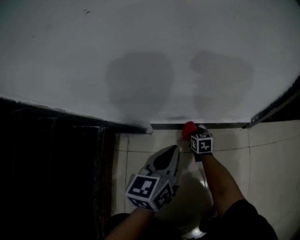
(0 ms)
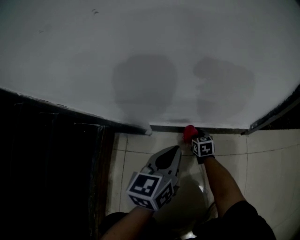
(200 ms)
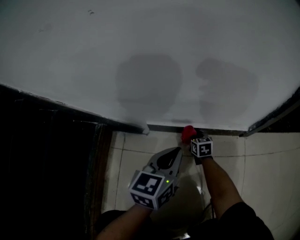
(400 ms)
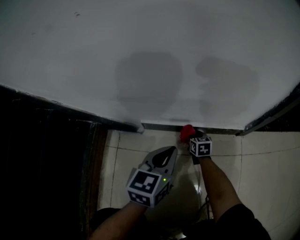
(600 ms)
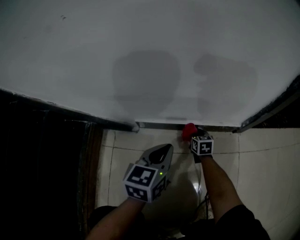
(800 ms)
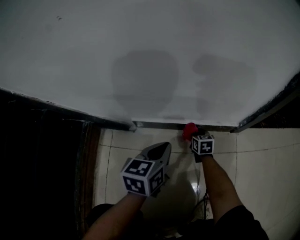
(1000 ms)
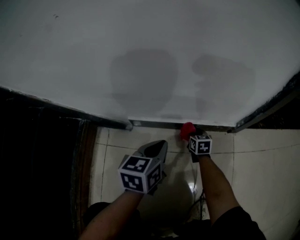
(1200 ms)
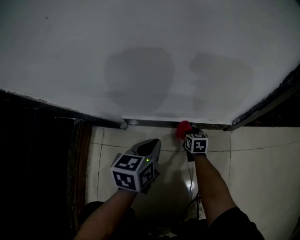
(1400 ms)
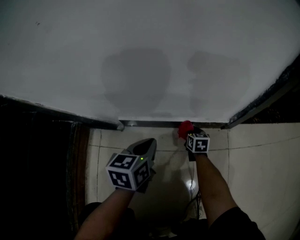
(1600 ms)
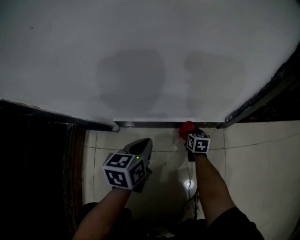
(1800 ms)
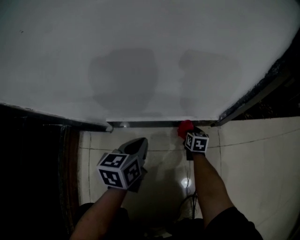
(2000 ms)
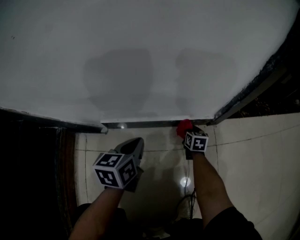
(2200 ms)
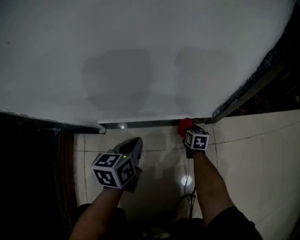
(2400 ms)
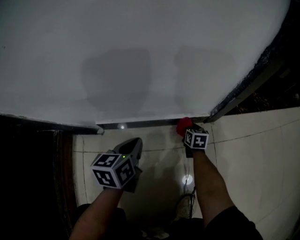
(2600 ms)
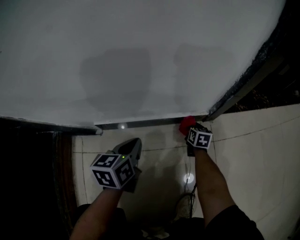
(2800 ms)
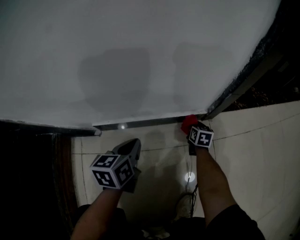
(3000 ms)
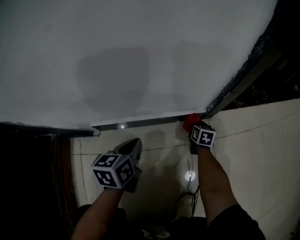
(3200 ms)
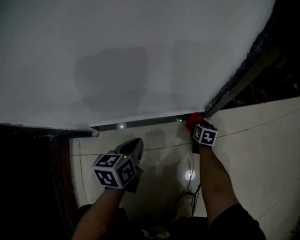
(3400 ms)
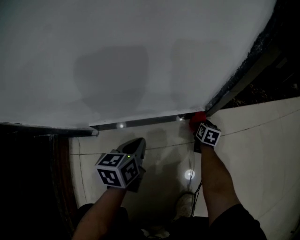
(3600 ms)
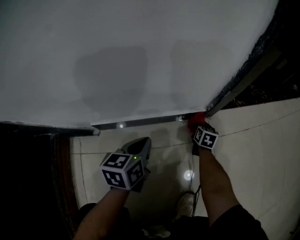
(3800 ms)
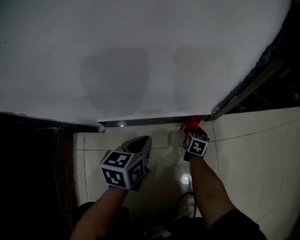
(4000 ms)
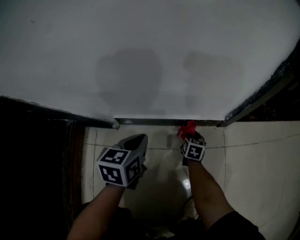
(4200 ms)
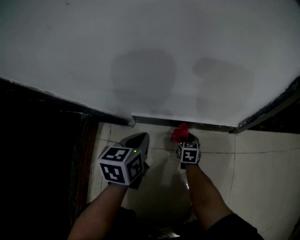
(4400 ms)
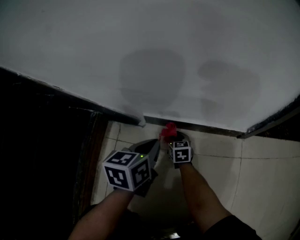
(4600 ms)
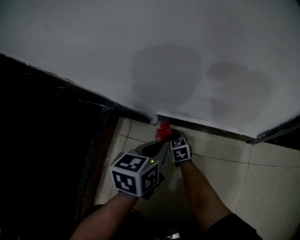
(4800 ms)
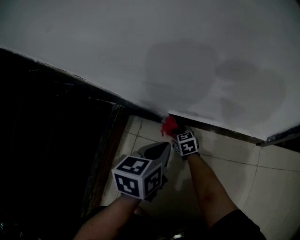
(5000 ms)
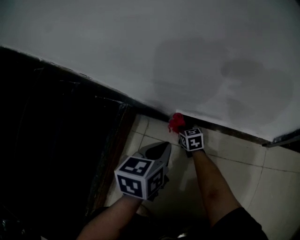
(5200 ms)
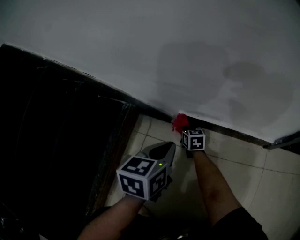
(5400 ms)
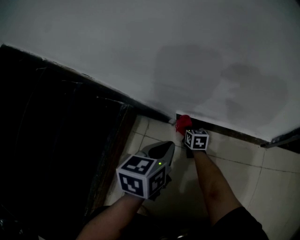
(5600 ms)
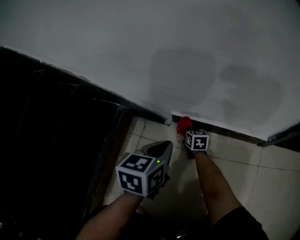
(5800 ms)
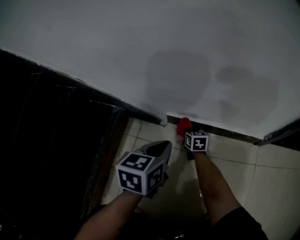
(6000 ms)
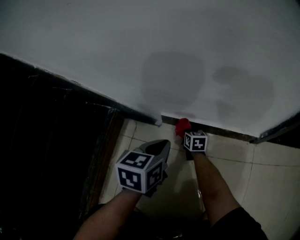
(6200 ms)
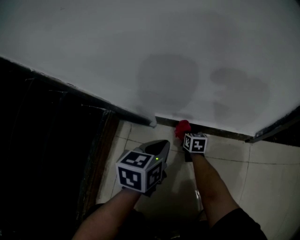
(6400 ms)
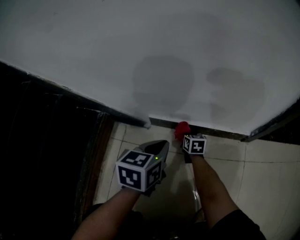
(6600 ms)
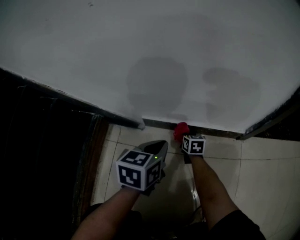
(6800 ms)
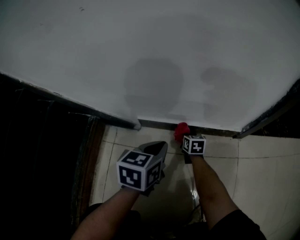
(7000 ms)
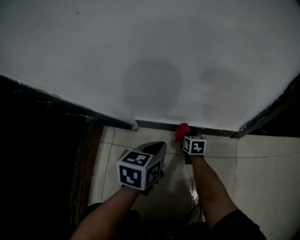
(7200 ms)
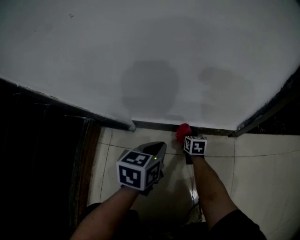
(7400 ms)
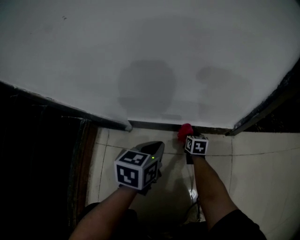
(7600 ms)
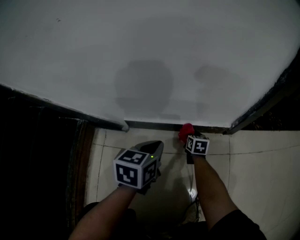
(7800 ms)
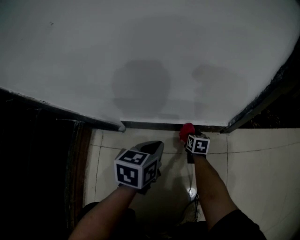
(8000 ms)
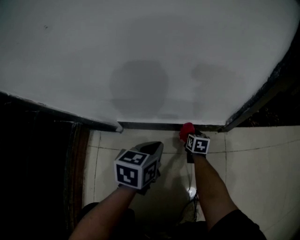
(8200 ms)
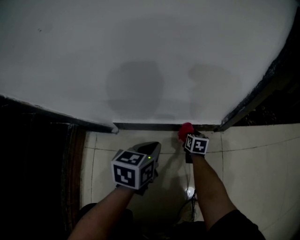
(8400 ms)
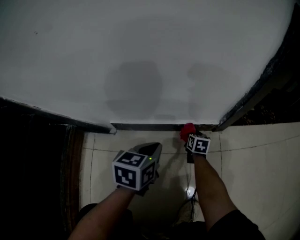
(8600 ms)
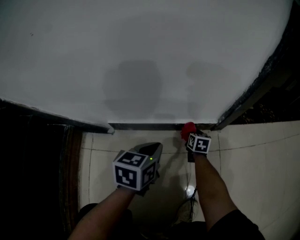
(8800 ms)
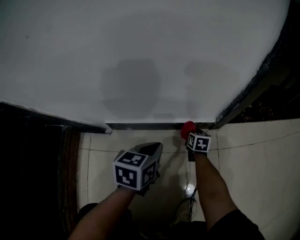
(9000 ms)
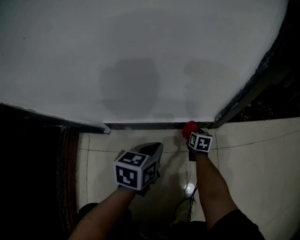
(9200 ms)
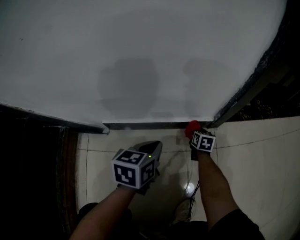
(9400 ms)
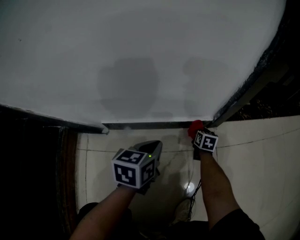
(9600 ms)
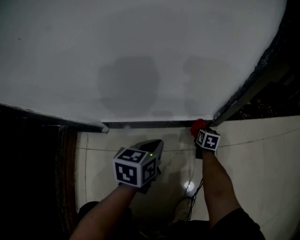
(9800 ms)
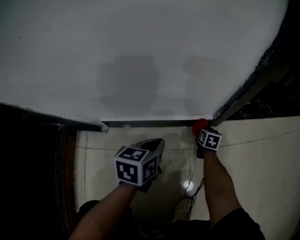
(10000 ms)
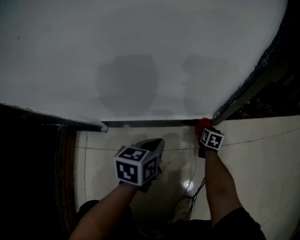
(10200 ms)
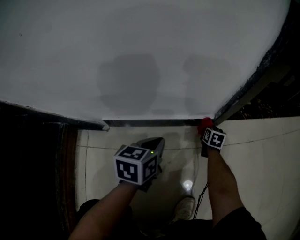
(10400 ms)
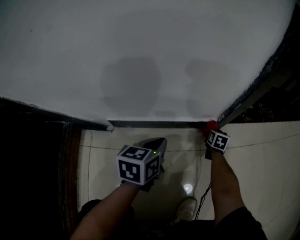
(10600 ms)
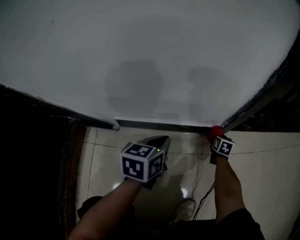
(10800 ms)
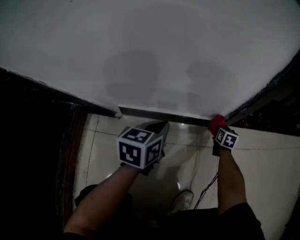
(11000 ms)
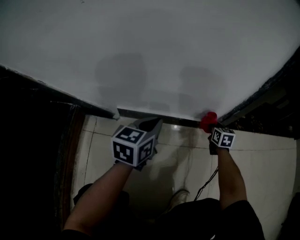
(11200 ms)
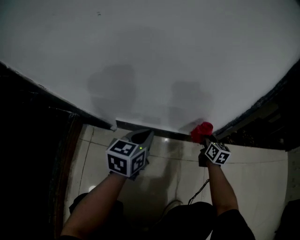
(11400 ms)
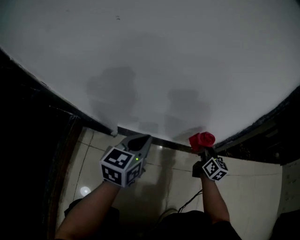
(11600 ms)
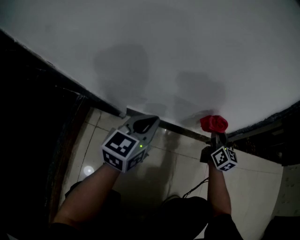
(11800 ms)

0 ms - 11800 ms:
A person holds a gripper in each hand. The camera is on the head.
0 ms - 1400 ms: The left gripper moves to the right and downward, some 10 cm; the right gripper goes about 10 cm to the right.
1400 ms - 3000 ms: The right gripper goes about 20 cm to the right. Meanwhile the left gripper is displaced to the right by some 5 cm.
3000 ms - 4400 ms: The left gripper goes about 15 cm to the left and backward, while the right gripper travels to the left and backward by about 25 cm.
4400 ms - 6000 ms: The left gripper travels to the left by roughly 5 cm, while the right gripper heads to the left and forward, covering some 15 cm.
6000 ms - 7400 ms: The grippers both shift to the right by approximately 15 cm.
7400 ms - 8800 ms: The right gripper travels to the right by about 15 cm. The left gripper travels to the right by approximately 10 cm.
8800 ms - 10400 ms: The right gripper moves to the right, roughly 10 cm.
10400 ms - 11800 ms: The left gripper shifts approximately 20 cm to the left and upward, and turns by approximately 30 degrees; the right gripper moves upward and to the left, roughly 35 cm, and tilts its fingers about 40 degrees upward.

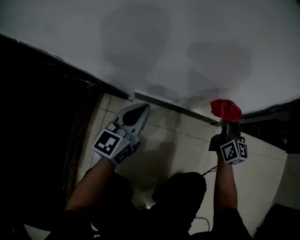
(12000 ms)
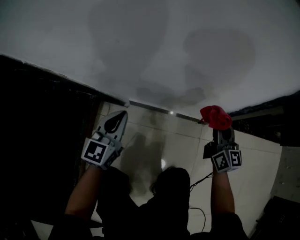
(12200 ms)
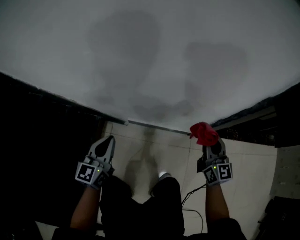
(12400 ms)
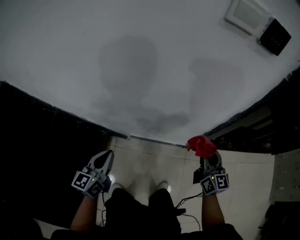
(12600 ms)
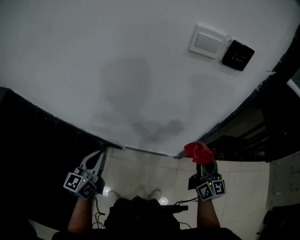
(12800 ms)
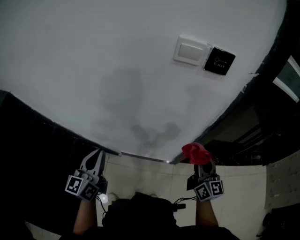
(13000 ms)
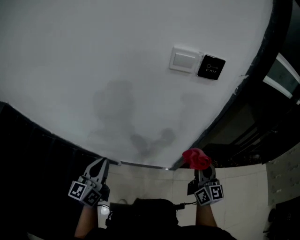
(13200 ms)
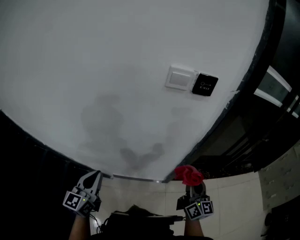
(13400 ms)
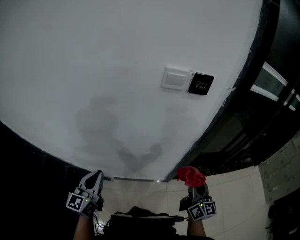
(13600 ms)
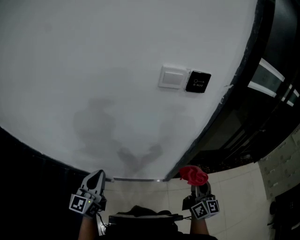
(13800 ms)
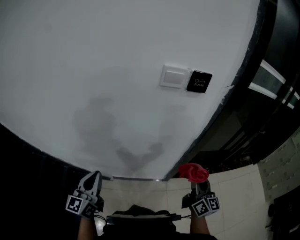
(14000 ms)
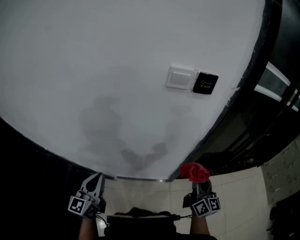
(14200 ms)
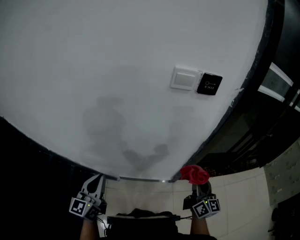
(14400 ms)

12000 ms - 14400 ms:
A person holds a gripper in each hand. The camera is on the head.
12000 ms - 13200 ms: The right gripper goes up and down, about 40 cm each way, reversing 2 times; the left gripper swings up and down, some 40 cm each way, with 2 reversals.
13200 ms - 14400 ms: The grippers stay close to where they were, moving slightly.

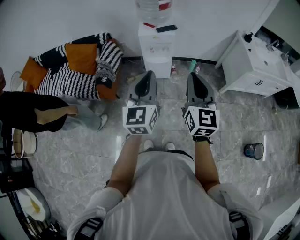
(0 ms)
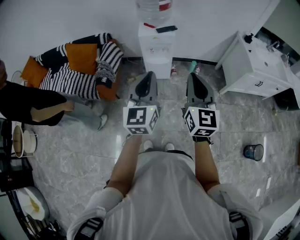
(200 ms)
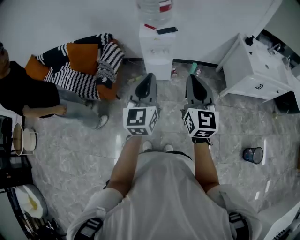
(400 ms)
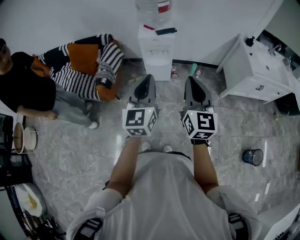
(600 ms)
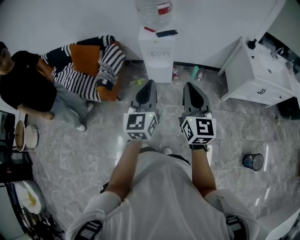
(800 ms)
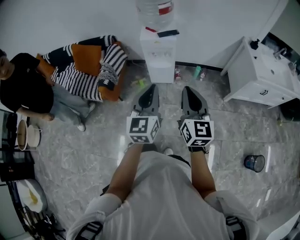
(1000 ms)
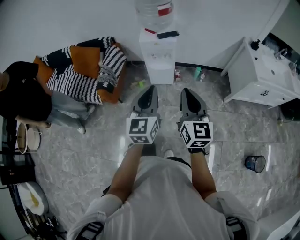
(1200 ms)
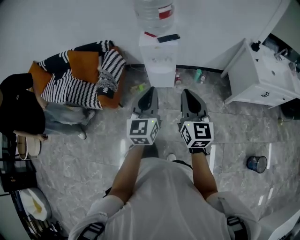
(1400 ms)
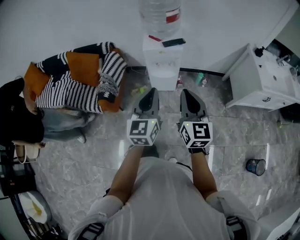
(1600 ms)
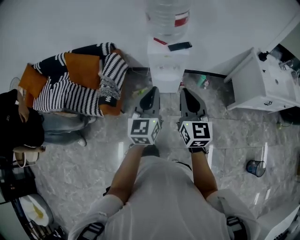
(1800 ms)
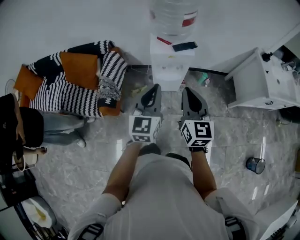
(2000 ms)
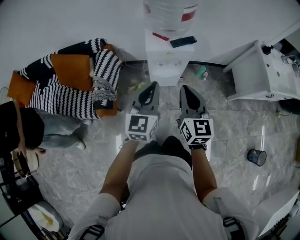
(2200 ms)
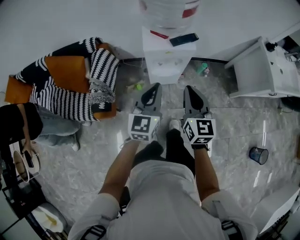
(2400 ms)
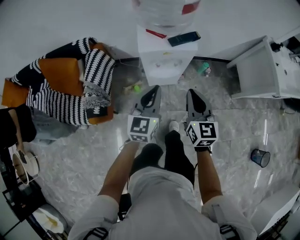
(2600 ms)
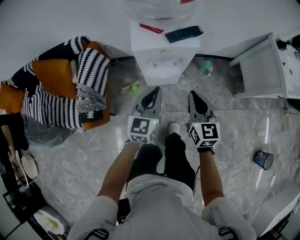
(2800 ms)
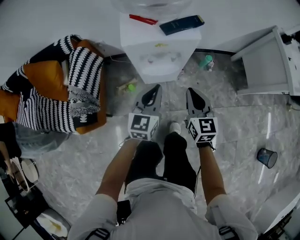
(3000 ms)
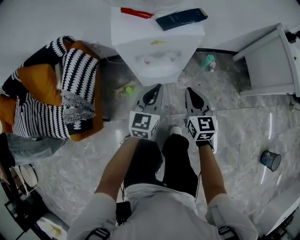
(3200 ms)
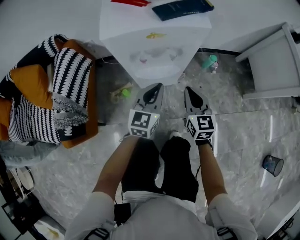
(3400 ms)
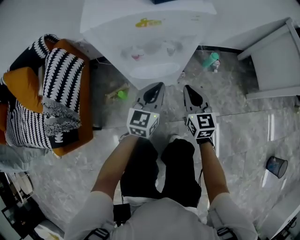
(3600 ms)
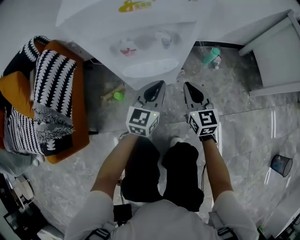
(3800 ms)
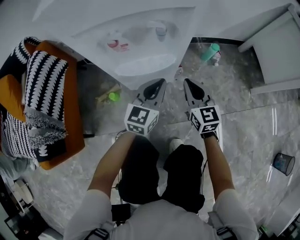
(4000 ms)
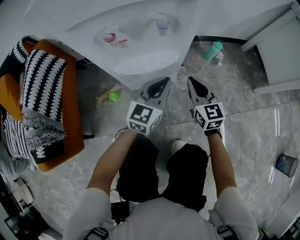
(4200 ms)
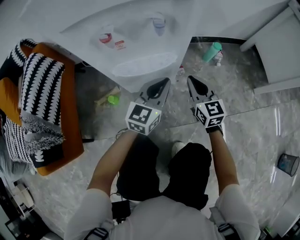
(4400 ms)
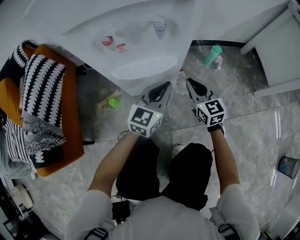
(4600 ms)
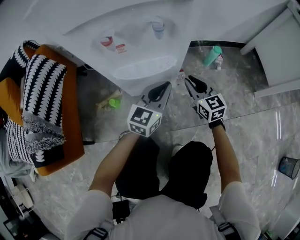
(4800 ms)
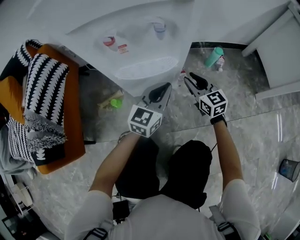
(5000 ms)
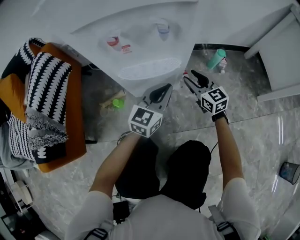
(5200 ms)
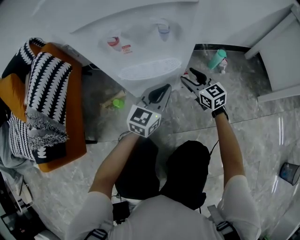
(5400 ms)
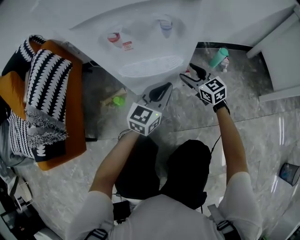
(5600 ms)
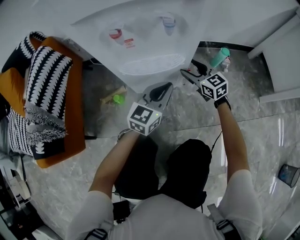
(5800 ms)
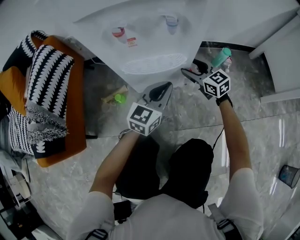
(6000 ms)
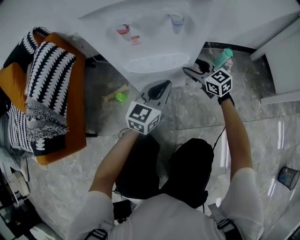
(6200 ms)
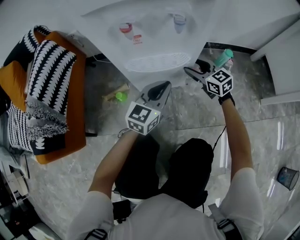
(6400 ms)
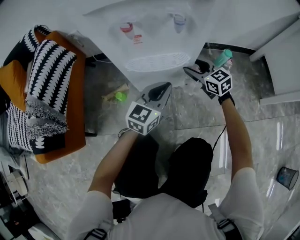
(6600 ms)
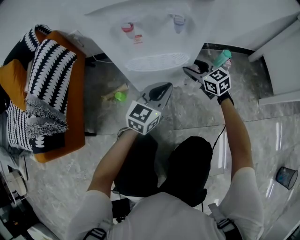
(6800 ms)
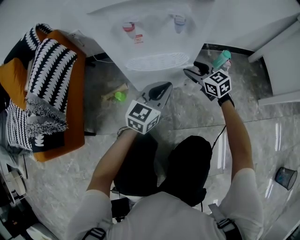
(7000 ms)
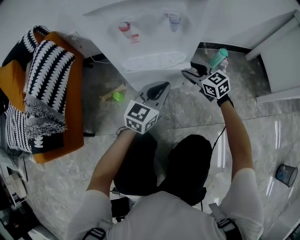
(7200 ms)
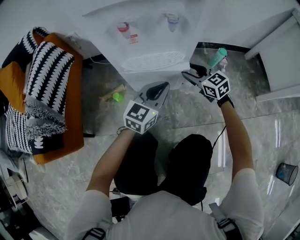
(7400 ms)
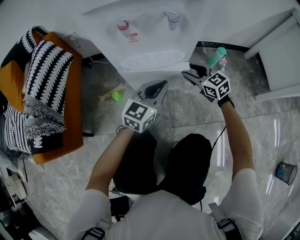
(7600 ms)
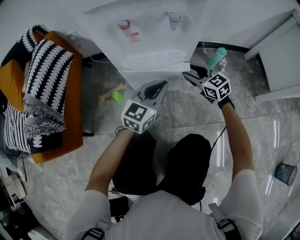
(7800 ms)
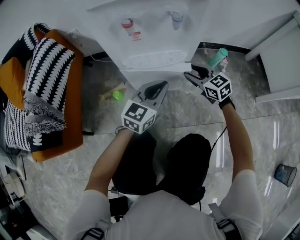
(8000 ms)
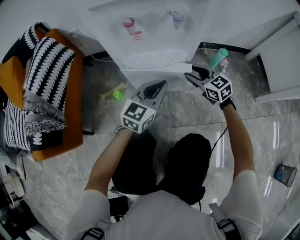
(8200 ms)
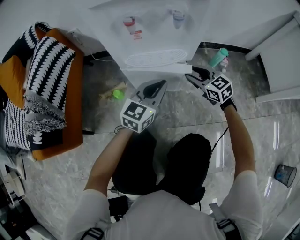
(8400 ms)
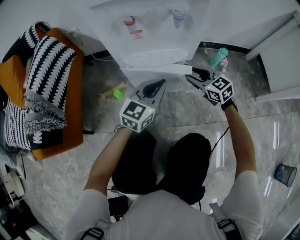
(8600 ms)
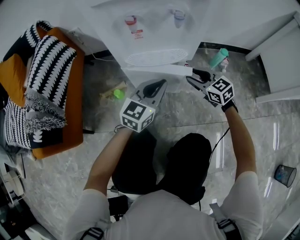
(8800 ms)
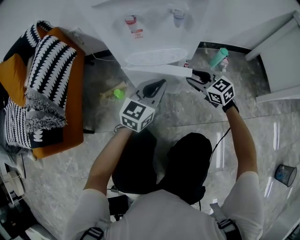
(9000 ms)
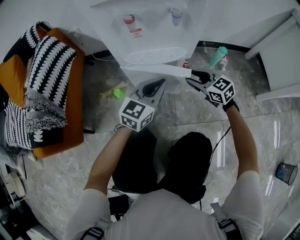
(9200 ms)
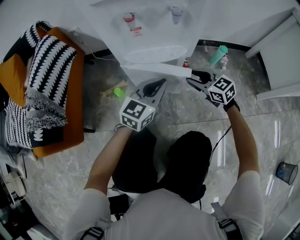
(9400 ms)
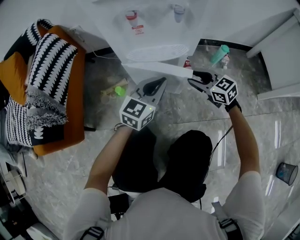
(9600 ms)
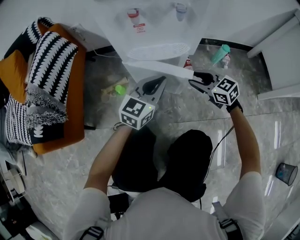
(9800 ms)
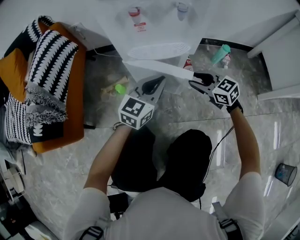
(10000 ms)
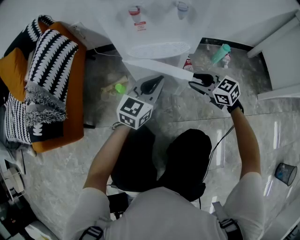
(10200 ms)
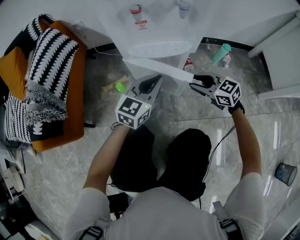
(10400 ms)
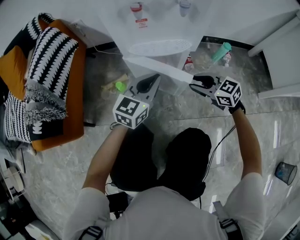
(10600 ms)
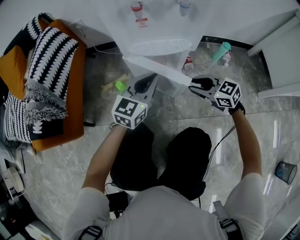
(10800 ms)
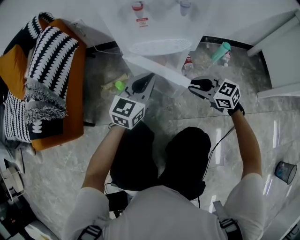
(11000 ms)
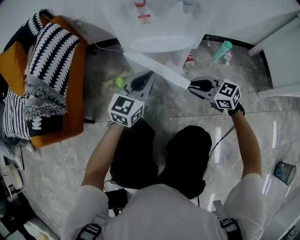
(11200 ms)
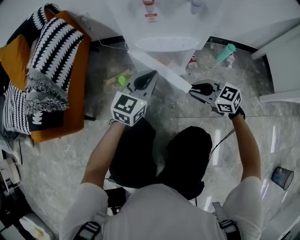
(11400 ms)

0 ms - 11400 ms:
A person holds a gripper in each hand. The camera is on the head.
0 ms - 1400 ms: The two grippers go roughly 10 cm forward and downward.
1400 ms - 2800 ms: The grippers both shift forward and downward by approximately 40 cm.
2800 ms - 4200 ms: The grippers both shift downward by roughly 40 cm.
4200 ms - 5600 ms: The right gripper heads forward and downward, covering approximately 10 cm, swivels approximately 20 degrees, and opens.
5600 ms - 8600 ms: The grippers stay close to where they were, moving slightly.
8600 ms - 10000 ms: The right gripper shifts roughly 5 cm backward.
10000 ms - 11400 ms: The left gripper is displaced to the left by approximately 5 cm. The right gripper shifts some 10 cm backward and to the left.
